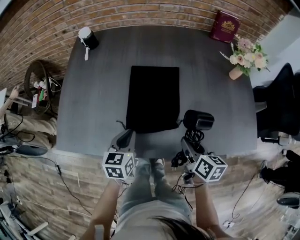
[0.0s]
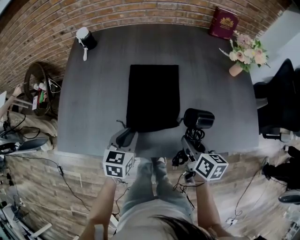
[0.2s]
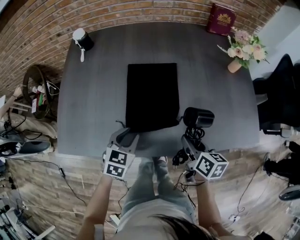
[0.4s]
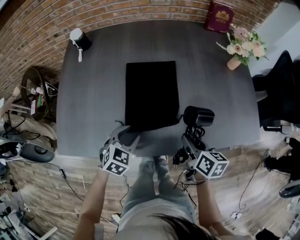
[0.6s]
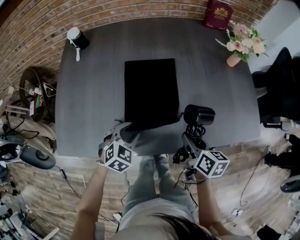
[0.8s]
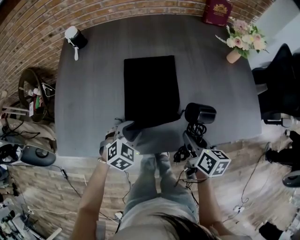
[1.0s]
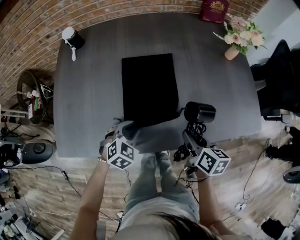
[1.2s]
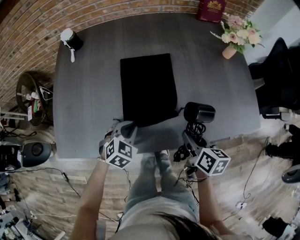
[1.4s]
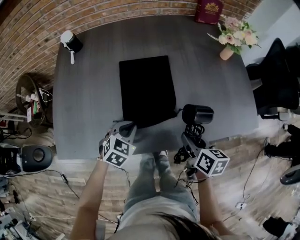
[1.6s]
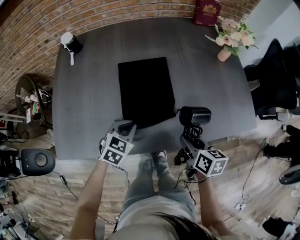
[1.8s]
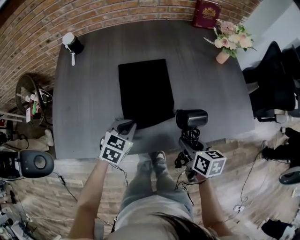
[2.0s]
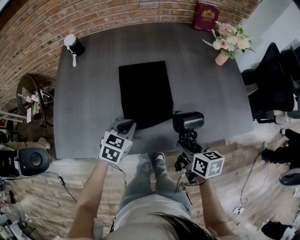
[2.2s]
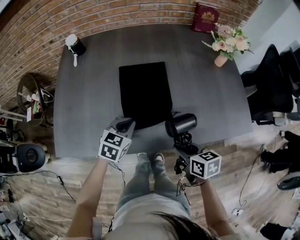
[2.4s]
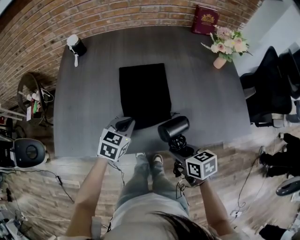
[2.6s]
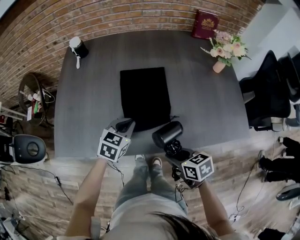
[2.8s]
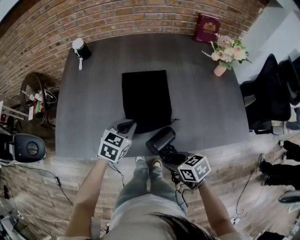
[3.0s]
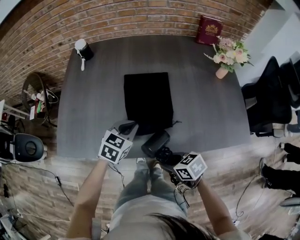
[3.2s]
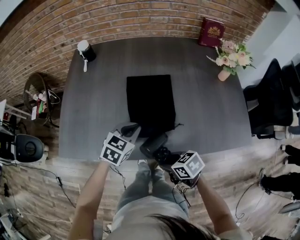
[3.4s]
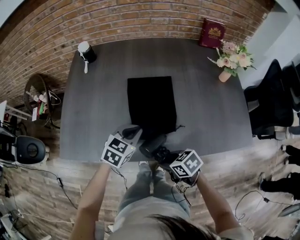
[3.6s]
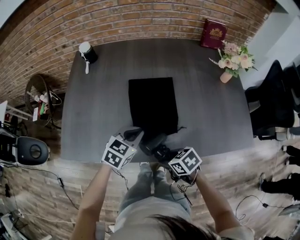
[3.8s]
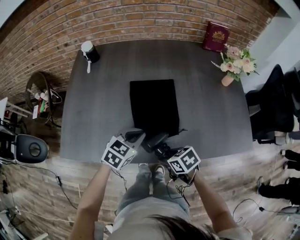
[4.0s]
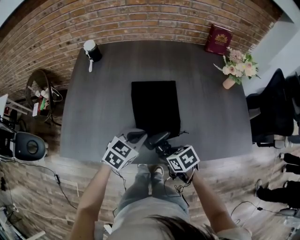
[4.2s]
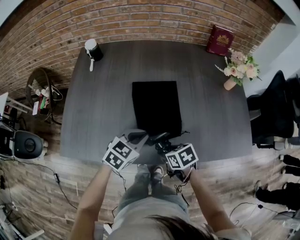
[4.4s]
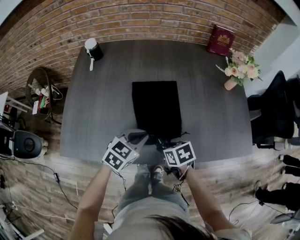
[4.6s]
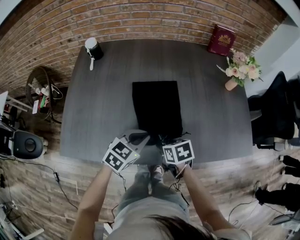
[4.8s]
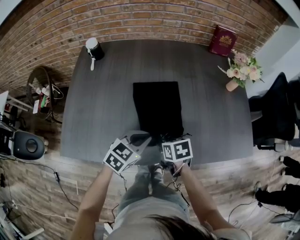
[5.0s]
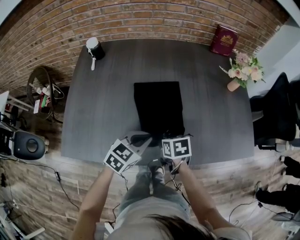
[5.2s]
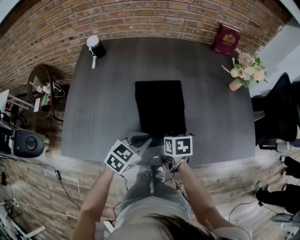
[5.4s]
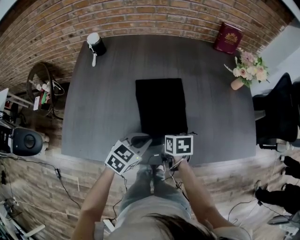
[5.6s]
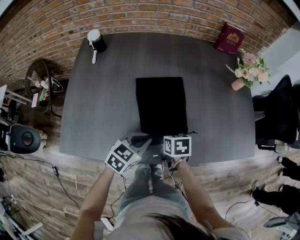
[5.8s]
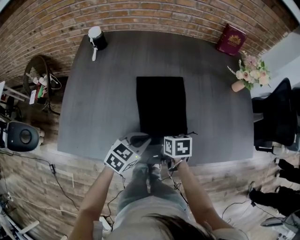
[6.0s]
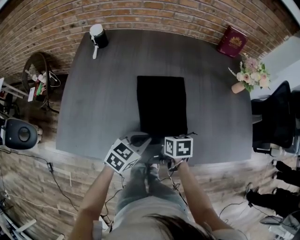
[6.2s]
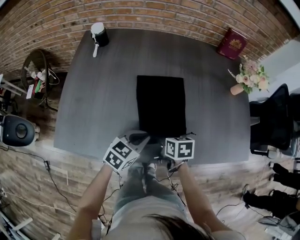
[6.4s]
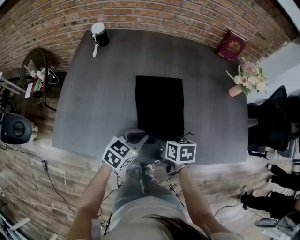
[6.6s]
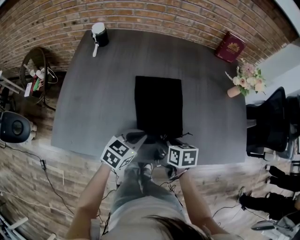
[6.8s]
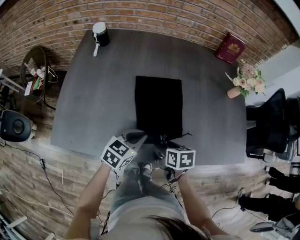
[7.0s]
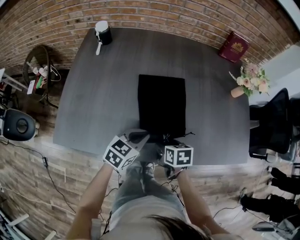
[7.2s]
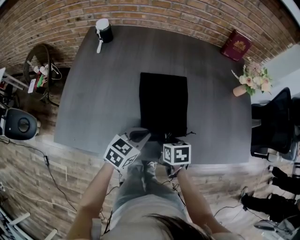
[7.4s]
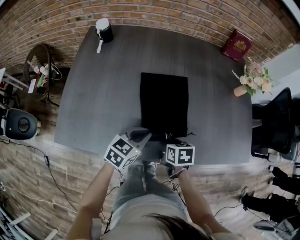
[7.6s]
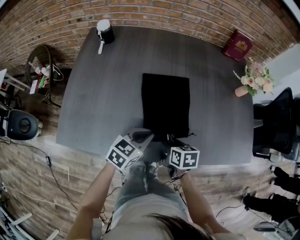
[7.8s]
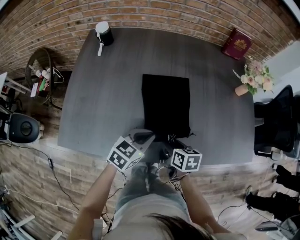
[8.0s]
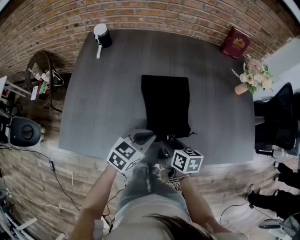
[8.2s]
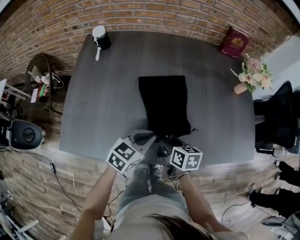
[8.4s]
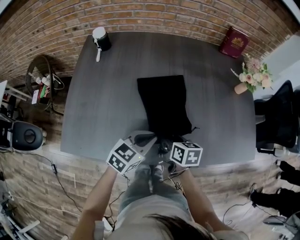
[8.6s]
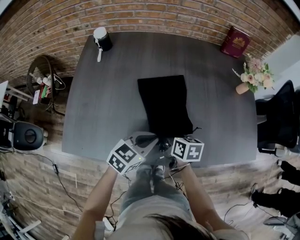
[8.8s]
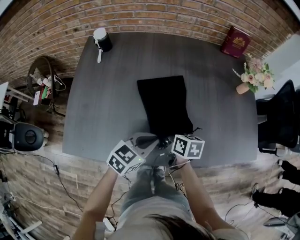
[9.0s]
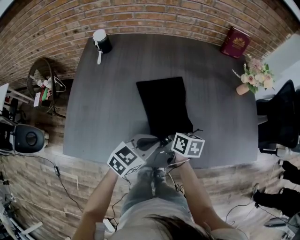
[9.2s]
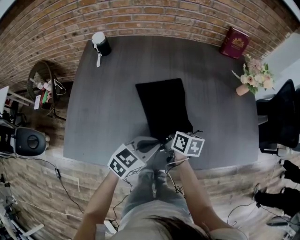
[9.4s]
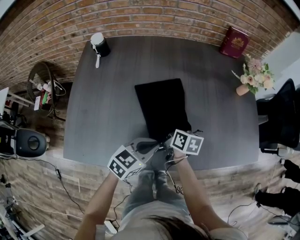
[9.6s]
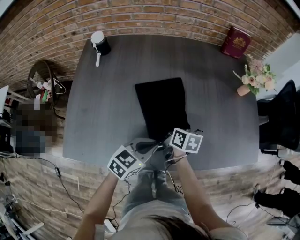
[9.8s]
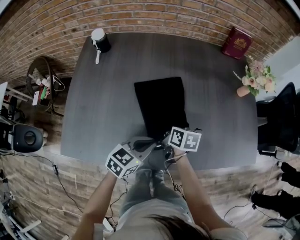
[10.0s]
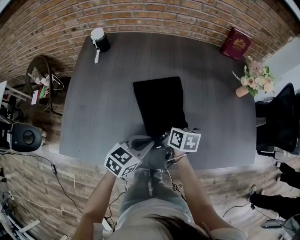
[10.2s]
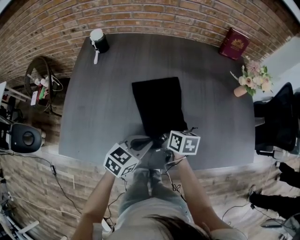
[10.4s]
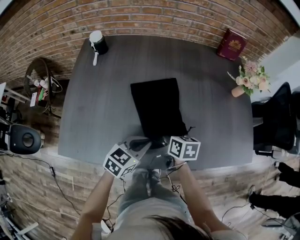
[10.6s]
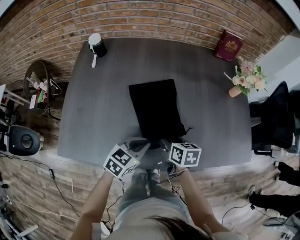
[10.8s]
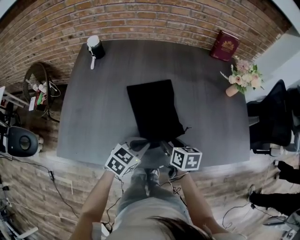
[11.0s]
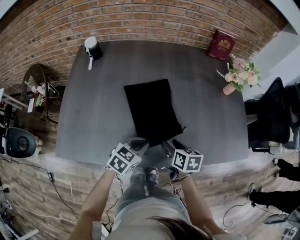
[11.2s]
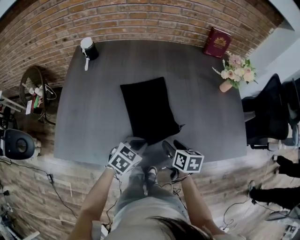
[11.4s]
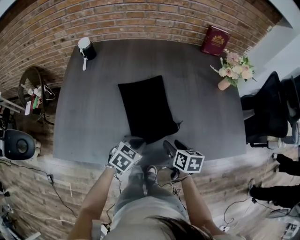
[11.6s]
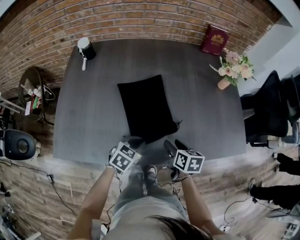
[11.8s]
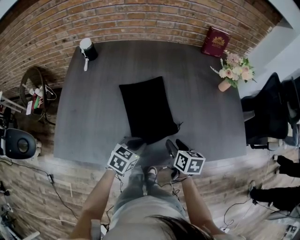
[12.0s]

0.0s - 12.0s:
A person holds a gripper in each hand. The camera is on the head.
0.0s - 1.6s: The left gripper shifts by approximately 5 cm, rolls clockwise, seen from behind, by about 40 degrees, and opens and closes again.
1.6s - 3.0s: The left gripper travels upward by some 5 cm, while the right gripper is displaced backward and to the left by about 10 cm, and swivels about 50 degrees.
3.0s - 4.4s: The right gripper shifts approximately 10 cm forward.
4.4s - 6.0s: The right gripper shifts some 10 cm forward, and changes its angle by approximately 20 degrees.
6.0s - 7.6s: The right gripper opens and closes again.
7.6s - 9.0s: The right gripper goes some 5 cm forward, and rotates approximately 20 degrees.
9.0s - 10.4s: The grippers move only a little.
10.4s - 12.0s: The left gripper goes some 5 cm downward, while the right gripper shifts approximately 15 cm to the right and backward.

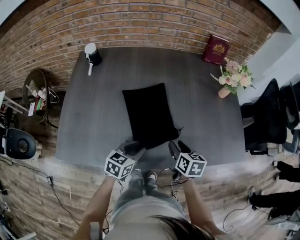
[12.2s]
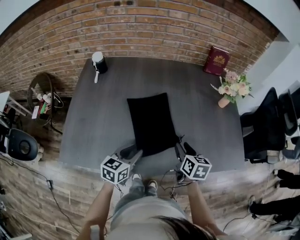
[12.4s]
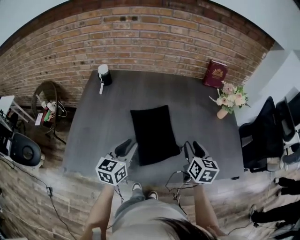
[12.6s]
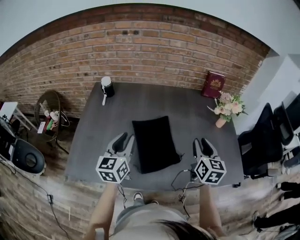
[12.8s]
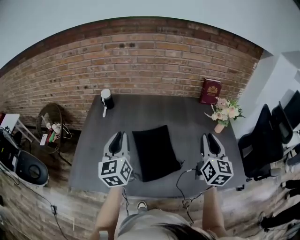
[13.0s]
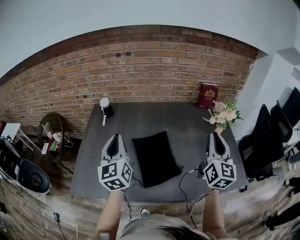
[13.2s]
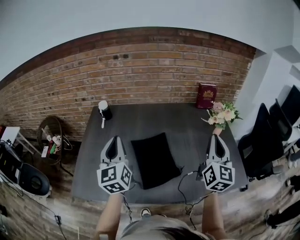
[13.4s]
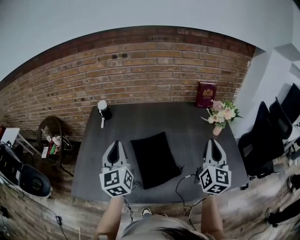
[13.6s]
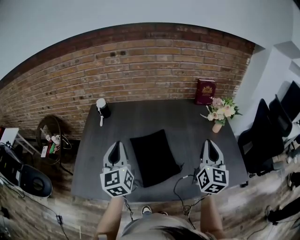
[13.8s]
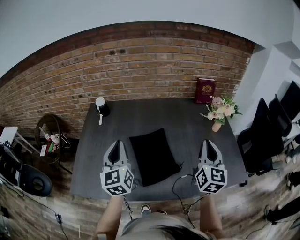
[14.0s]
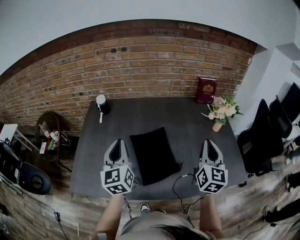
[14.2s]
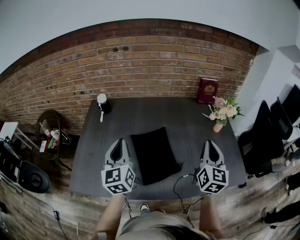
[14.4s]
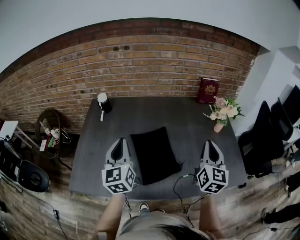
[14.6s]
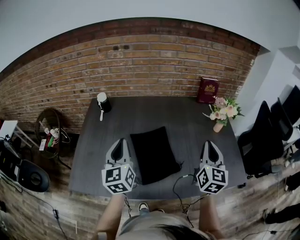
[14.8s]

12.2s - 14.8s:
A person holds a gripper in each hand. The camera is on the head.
12.2s - 13.4s: The left gripper is displaced upward and to the left by about 35 cm, points its fingers roughly 40 degrees further upward, and closes its fingers; the right gripper shifts roughly 35 cm upward, points its fingers roughly 50 degrees further upward, and closes up.
13.4s - 14.8s: Both grippers move downward, approximately 5 cm.

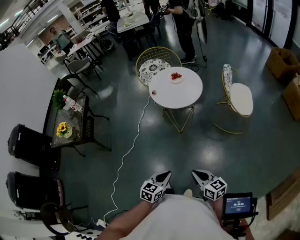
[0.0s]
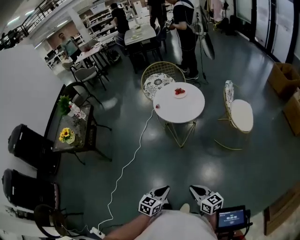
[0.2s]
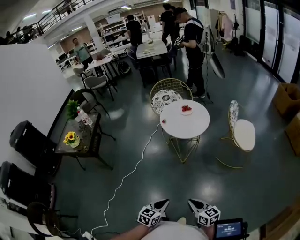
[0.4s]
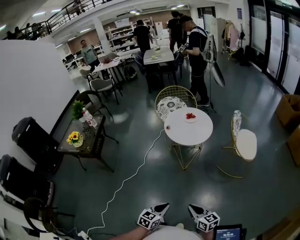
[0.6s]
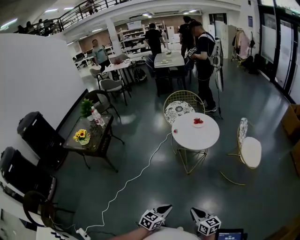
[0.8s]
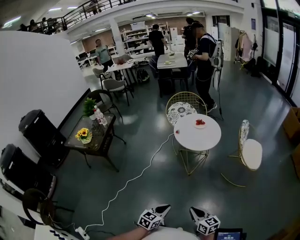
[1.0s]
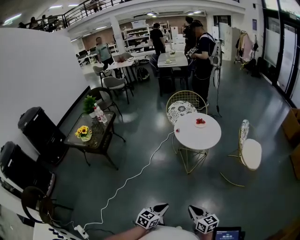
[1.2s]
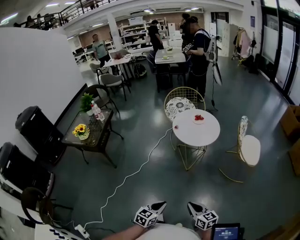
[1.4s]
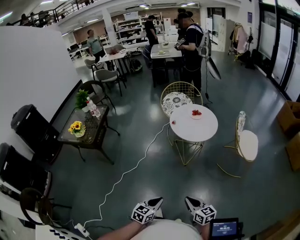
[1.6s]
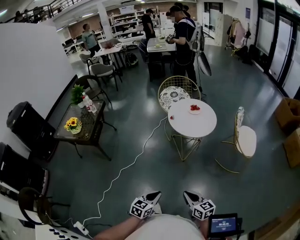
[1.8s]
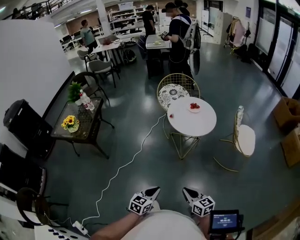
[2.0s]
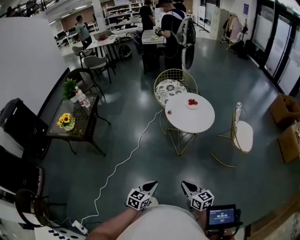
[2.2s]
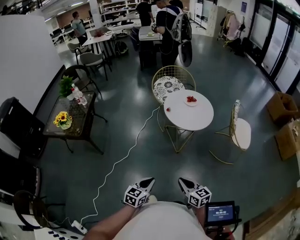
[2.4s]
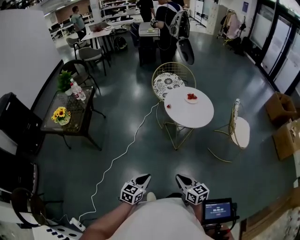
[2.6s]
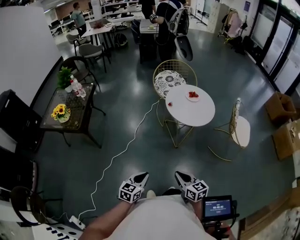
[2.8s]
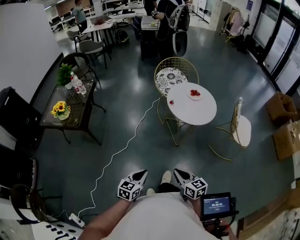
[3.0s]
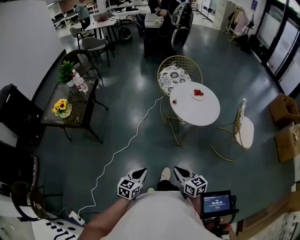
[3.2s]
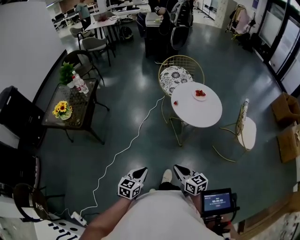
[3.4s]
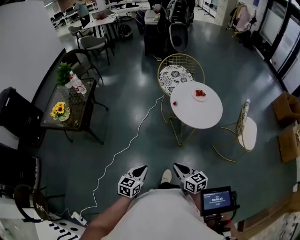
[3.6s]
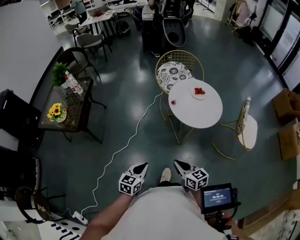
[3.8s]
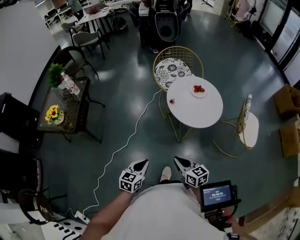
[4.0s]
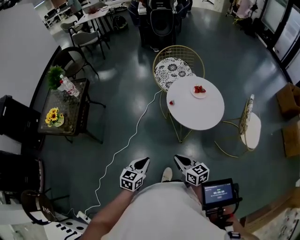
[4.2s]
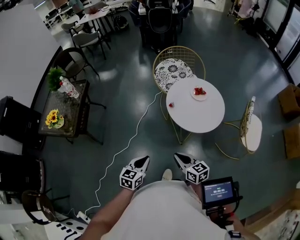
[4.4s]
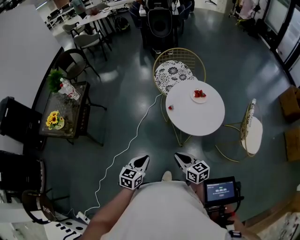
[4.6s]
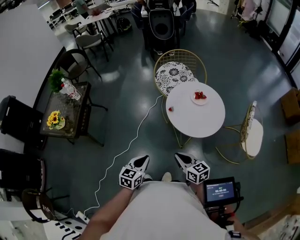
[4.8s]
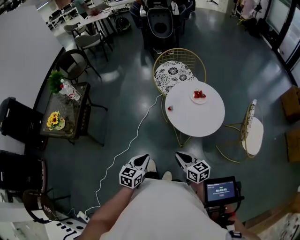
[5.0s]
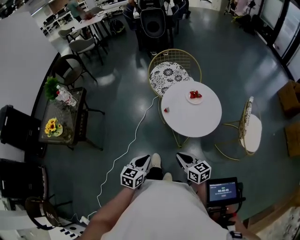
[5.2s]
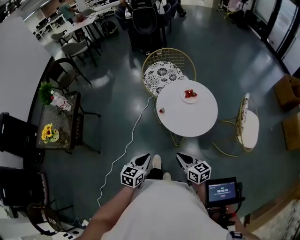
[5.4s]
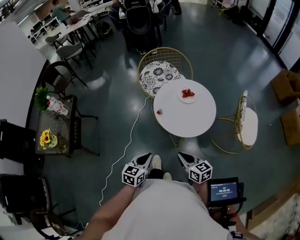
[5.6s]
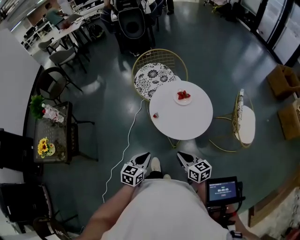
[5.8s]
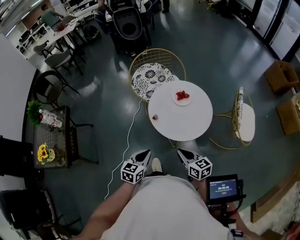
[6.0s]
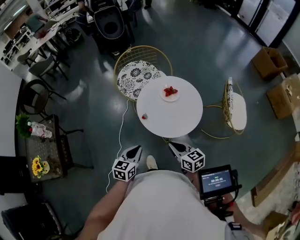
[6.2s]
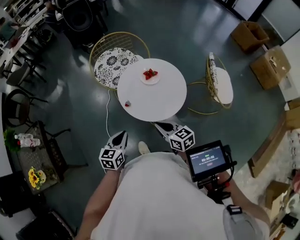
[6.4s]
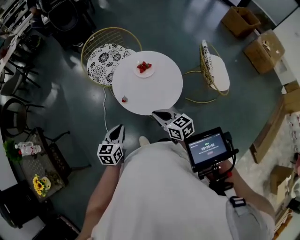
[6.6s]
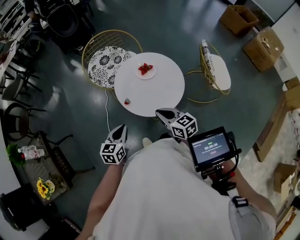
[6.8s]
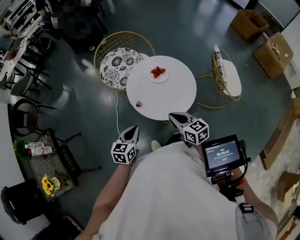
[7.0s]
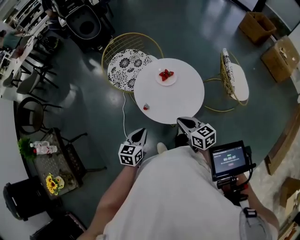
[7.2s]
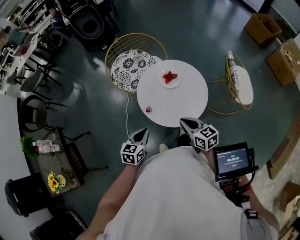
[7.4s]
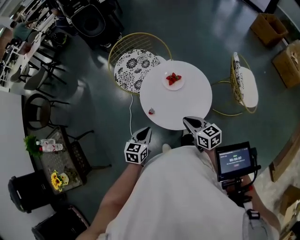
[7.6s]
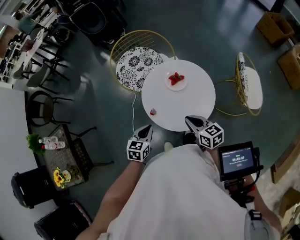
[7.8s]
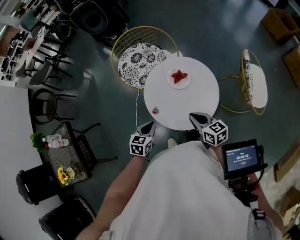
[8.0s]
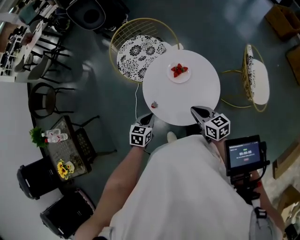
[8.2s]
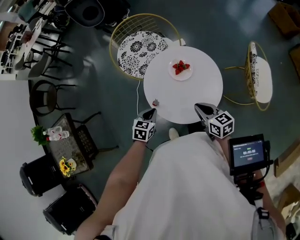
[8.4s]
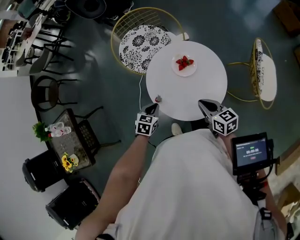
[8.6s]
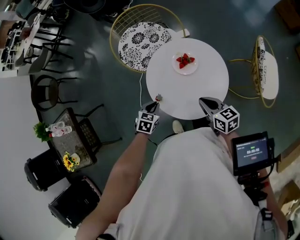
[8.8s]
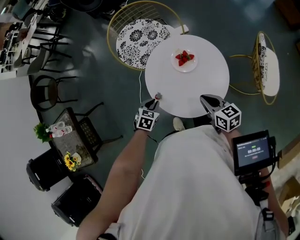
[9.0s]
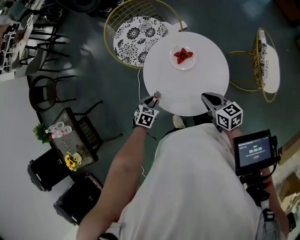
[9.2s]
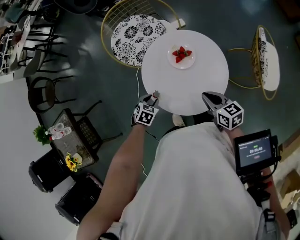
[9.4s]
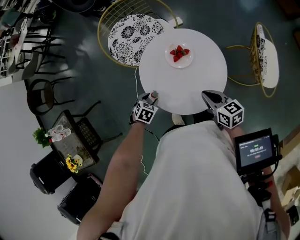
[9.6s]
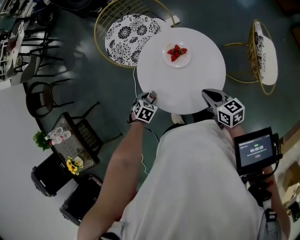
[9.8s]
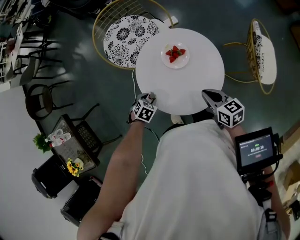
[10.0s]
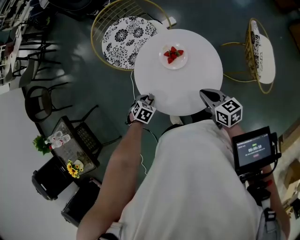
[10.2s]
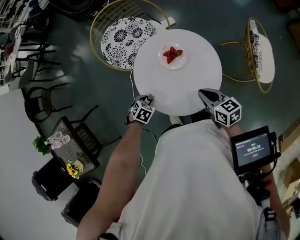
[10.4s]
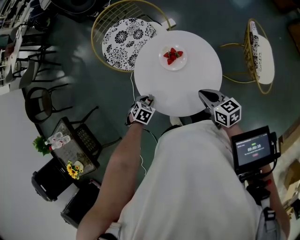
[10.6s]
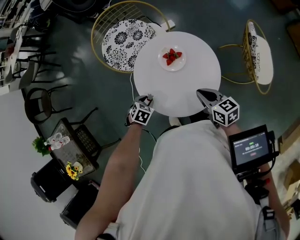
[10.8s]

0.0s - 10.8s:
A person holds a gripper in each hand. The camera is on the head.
0.0s - 1.6s: The left gripper moves to the left and backward, roughly 10 cm. The right gripper goes about 5 cm to the left.
1.6s - 3.0s: The grippers both shift to the left and forward by about 15 cm.
3.0s - 4.6s: Both grippers move forward, roughly 25 cm.
4.6s - 6.2s: The right gripper goes some 15 cm forward and to the right. Meanwhile the left gripper is displaced forward by roughly 15 cm.
6.2s - 7.8s: The right gripper is displaced forward and to the right by approximately 15 cm. Meanwhile the left gripper is displaced forward by about 15 cm.
7.8s - 9.2s: The left gripper moves downward and forward, some 15 cm, and changes its angle by some 30 degrees. The right gripper ends up roughly 10 cm from where it was.
9.2s - 10.8s: The grippers make only small movements.
